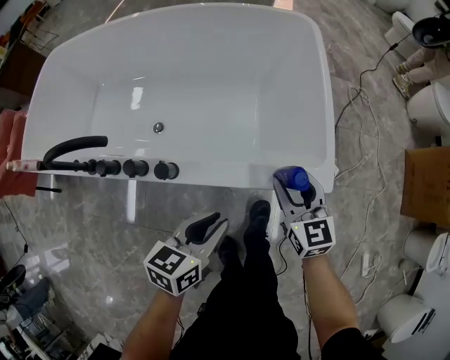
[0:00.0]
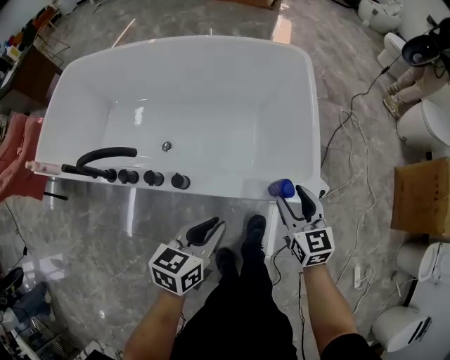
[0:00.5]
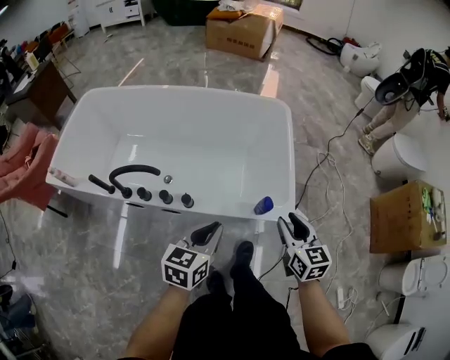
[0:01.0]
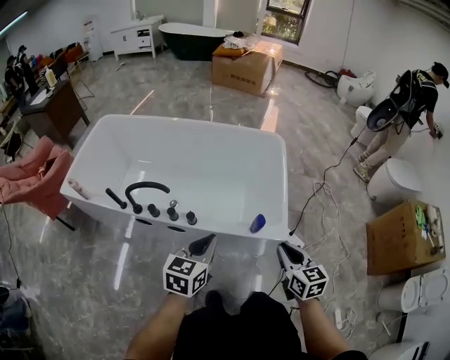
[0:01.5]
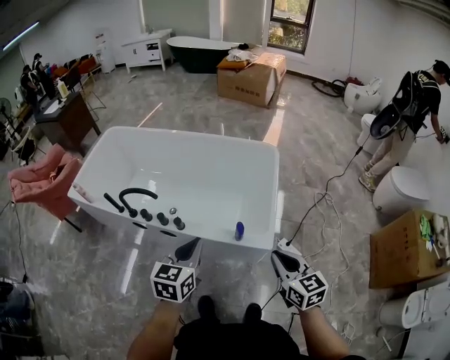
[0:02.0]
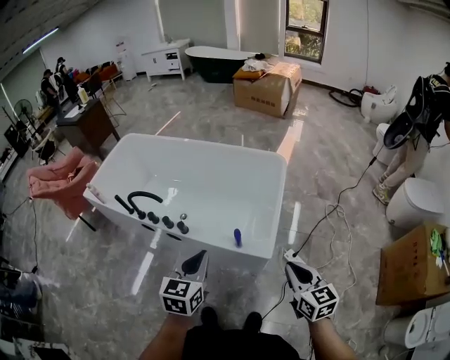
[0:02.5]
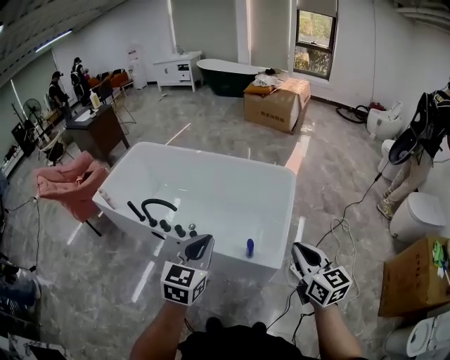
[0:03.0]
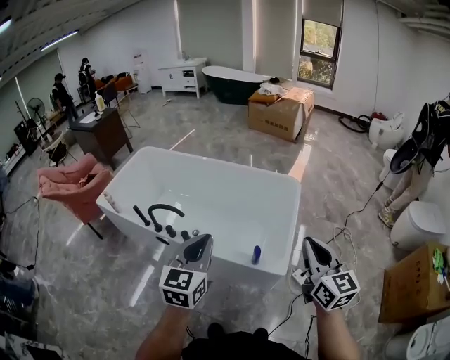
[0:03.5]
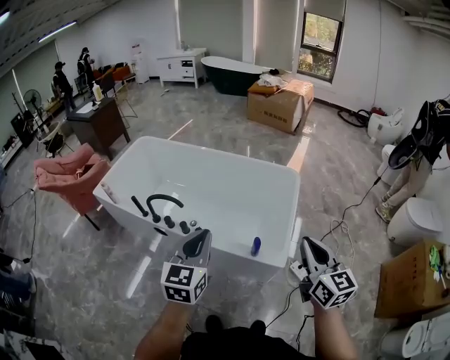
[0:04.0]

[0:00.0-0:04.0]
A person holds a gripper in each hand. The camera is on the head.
0:00.0 to 0:02.0: The left gripper is displaced upward by approximately 30 cm, and changes its angle by about 30 degrees; the right gripper travels upward and backward by approximately 35 cm, and closes its fingers.
0:02.0 to 0:04.0: The grippers both shift upward by roughly 15 cm.

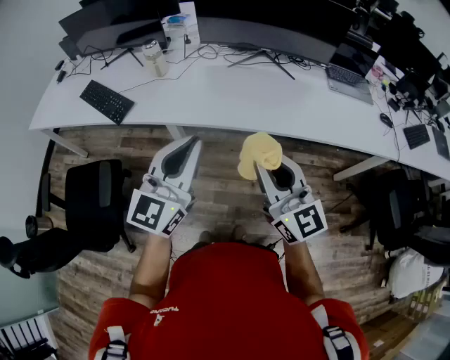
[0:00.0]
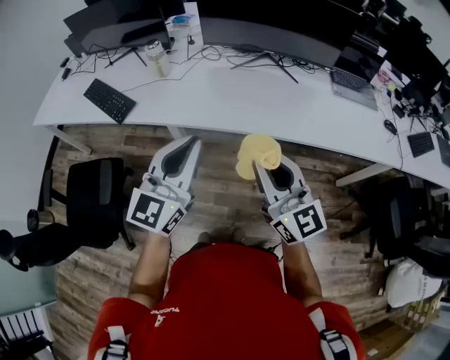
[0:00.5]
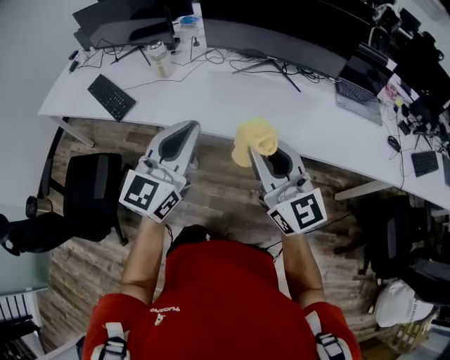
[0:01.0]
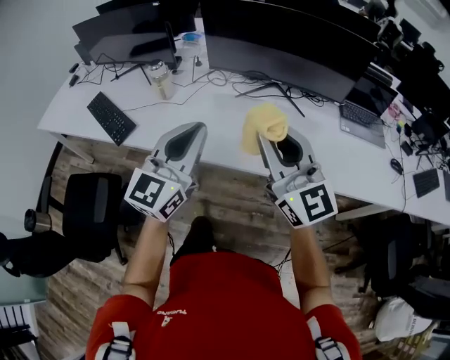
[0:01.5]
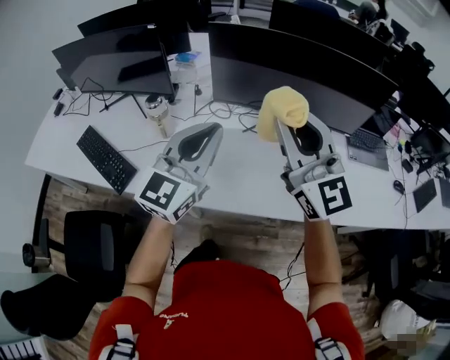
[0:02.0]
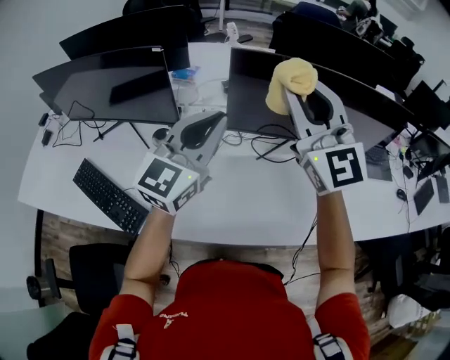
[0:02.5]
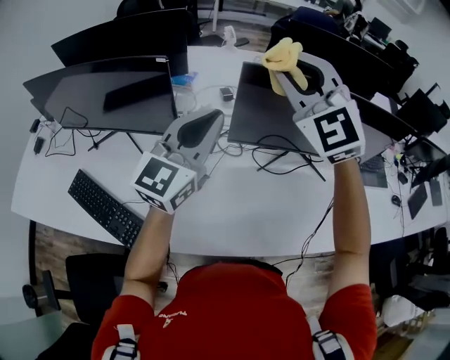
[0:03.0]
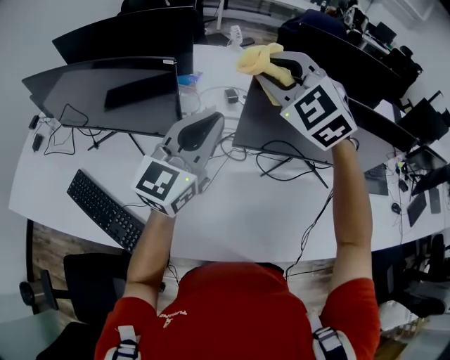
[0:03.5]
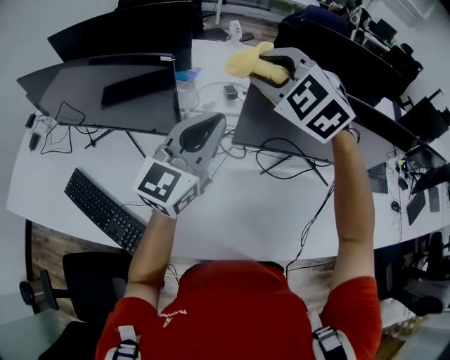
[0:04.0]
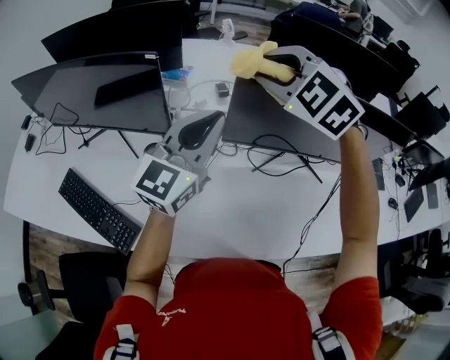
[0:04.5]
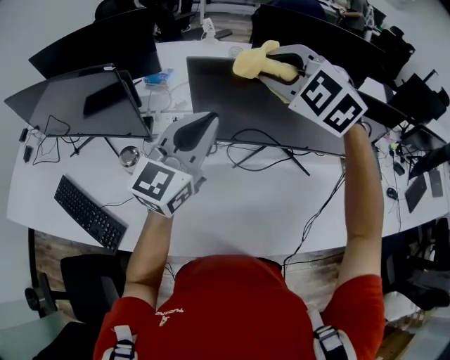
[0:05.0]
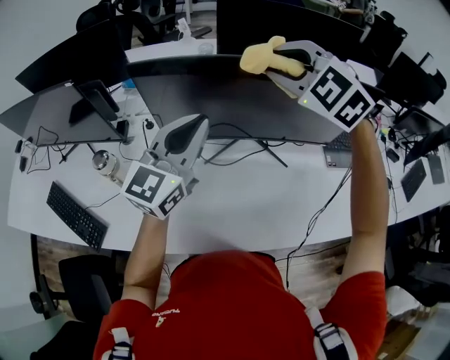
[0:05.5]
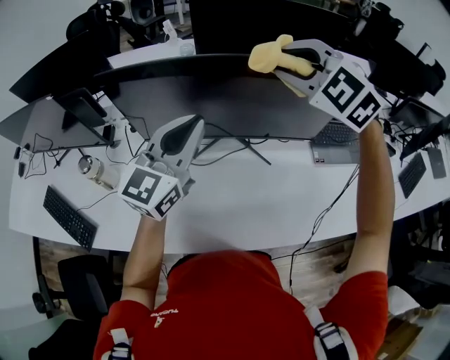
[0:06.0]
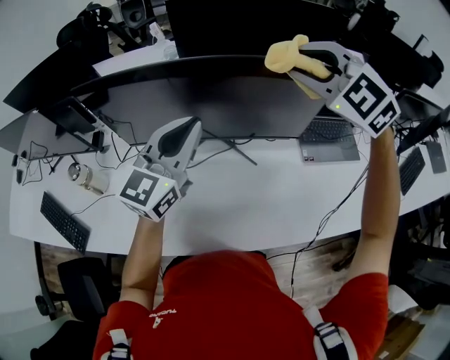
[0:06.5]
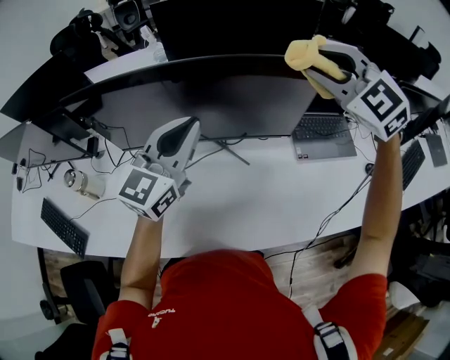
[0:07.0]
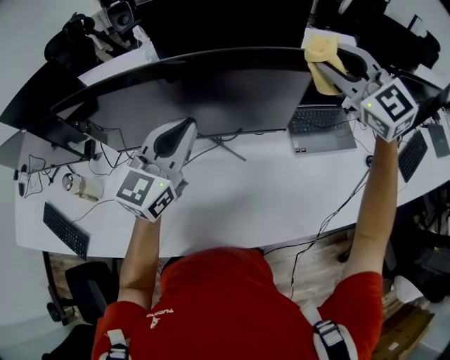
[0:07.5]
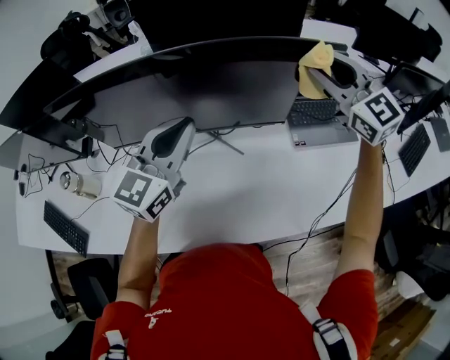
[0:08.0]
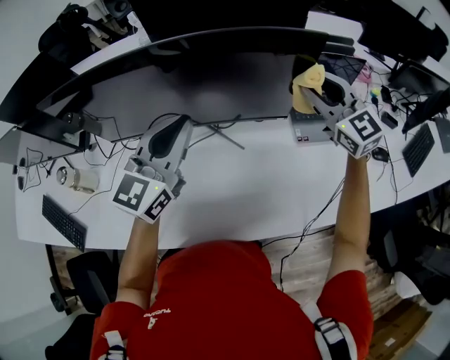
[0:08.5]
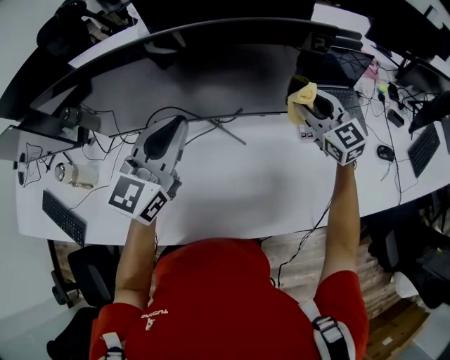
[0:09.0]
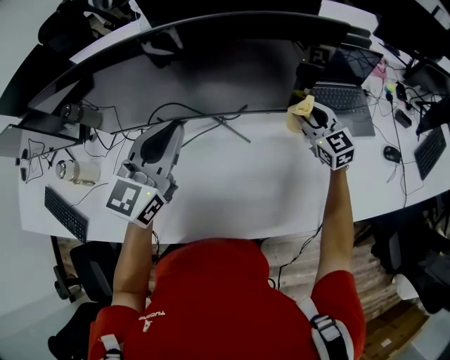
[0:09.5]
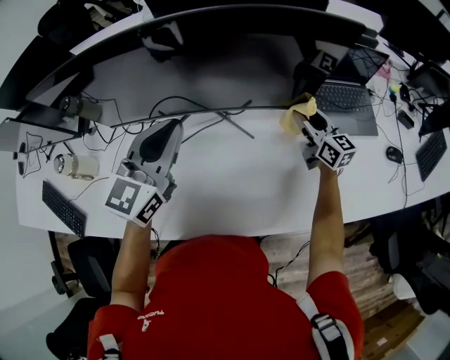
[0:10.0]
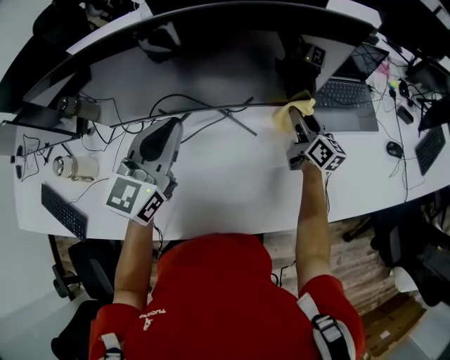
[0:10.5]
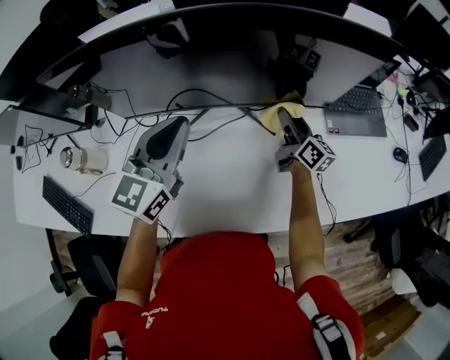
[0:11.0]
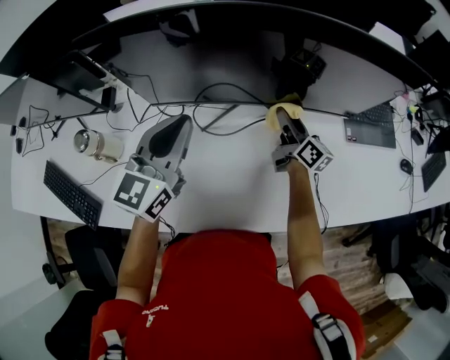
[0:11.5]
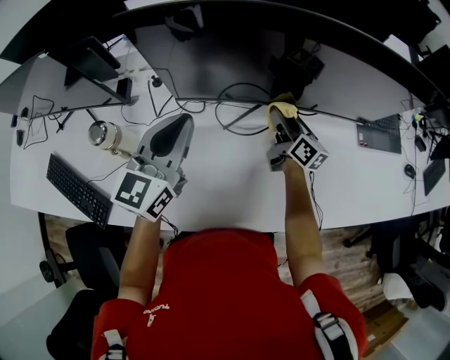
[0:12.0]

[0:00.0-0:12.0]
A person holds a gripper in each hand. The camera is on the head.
0:00.0 to 0:02.0: The left gripper shifts some 30 cm forward; the right gripper shifts approximately 35 cm forward and upward.
0:02.0 to 0:04.0: Both grippers move forward and to the left, roughly 30 cm. The right gripper tips its fingers downward by roughly 50 degrees, and opens.
0:04.0 to 0:06.0: Both grippers move to the right, about 35 cm.
0:06.0 to 0:08.0: The left gripper heads to the right, covering about 10 cm. The right gripper heads to the right, covering approximately 25 cm, and changes its angle by roughly 40 degrees.
0:08.0 to 0:10.0: The left gripper goes roughly 5 cm downward. The right gripper travels downward by approximately 30 cm, and twists approximately 40 degrees clockwise, seen from behind.
0:10.0 to 0:12.0: The grippers both shift to the left by about 30 cm. The right gripper swivels about 20 degrees.

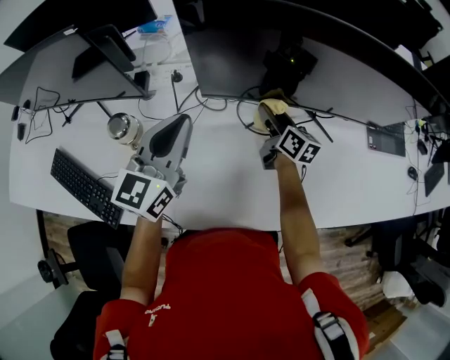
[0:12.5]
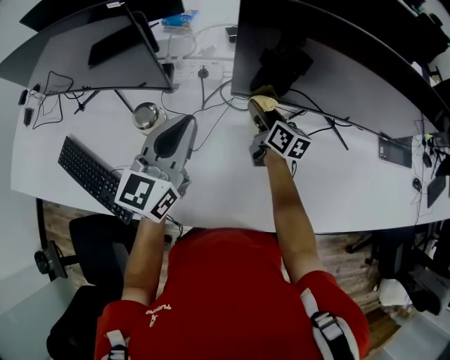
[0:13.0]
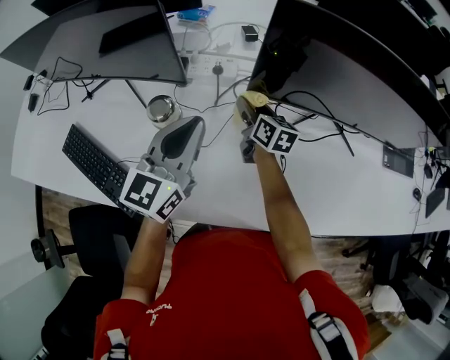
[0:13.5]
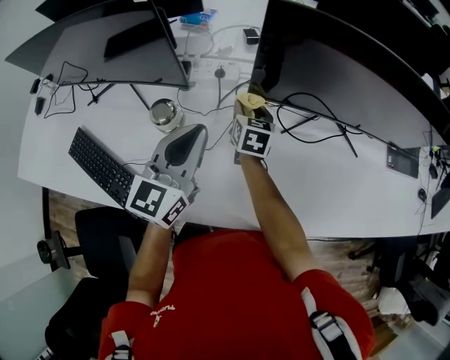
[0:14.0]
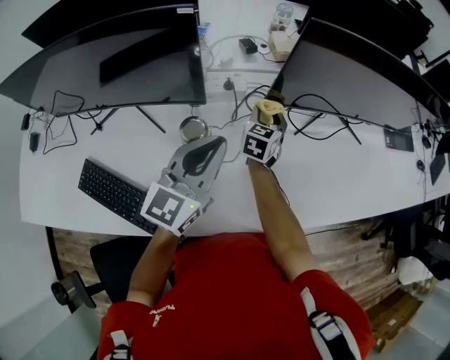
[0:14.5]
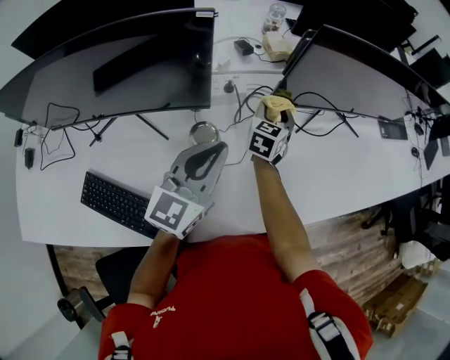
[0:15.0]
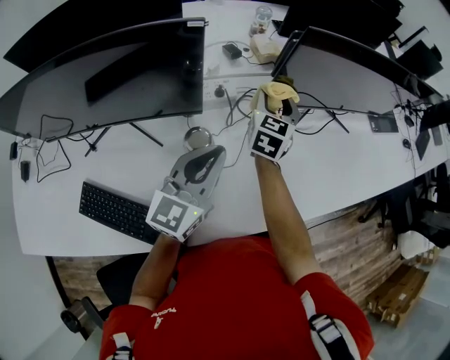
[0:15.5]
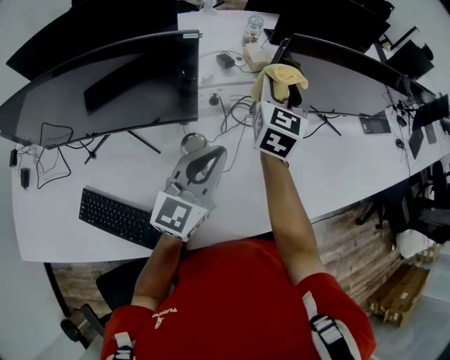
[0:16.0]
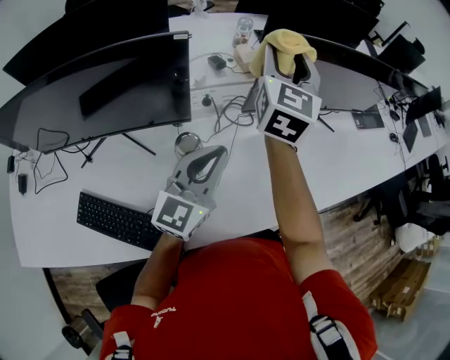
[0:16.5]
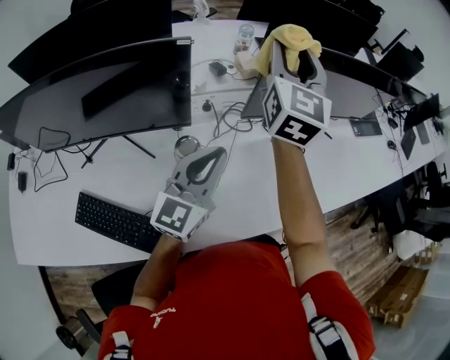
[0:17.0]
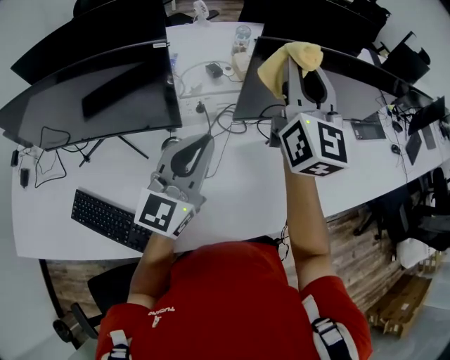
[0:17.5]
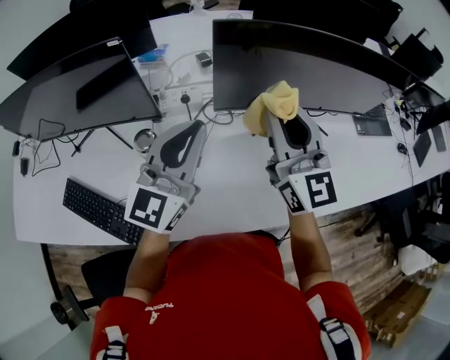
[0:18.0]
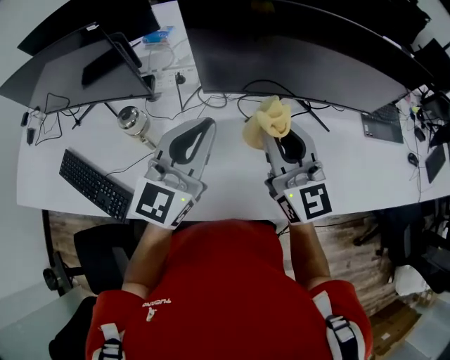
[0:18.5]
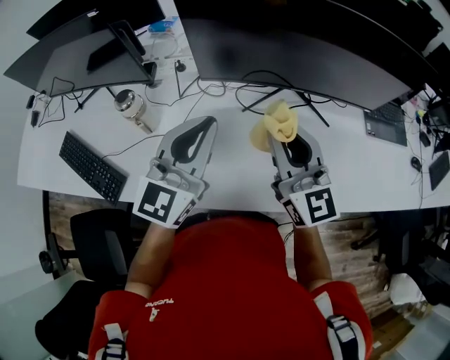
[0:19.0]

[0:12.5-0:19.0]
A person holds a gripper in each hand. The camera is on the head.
0:12.5 to 0:14.5: The right gripper changes place by some 20 cm, and rotates some 50 degrees; the left gripper ends up some 15 cm from where it was.
0:14.5 to 0:17.0: The right gripper moves upward, some 40 cm, and tilts its fingers approximately 40 degrees upward.
0:17.0 to 0:19.0: The right gripper shifts by approximately 30 cm, swivels roughly 40 degrees, and closes its fingers, while the left gripper changes place by roughly 20 cm, and rotates about 20 degrees.

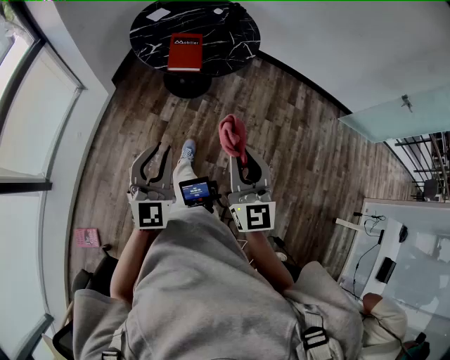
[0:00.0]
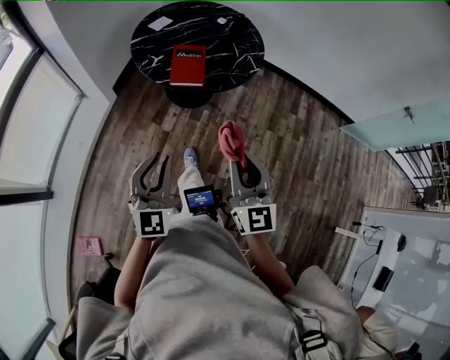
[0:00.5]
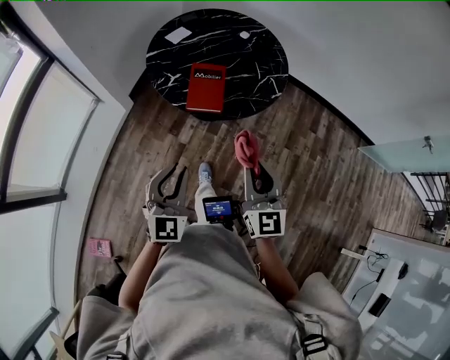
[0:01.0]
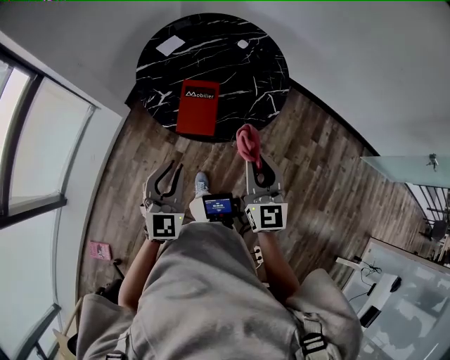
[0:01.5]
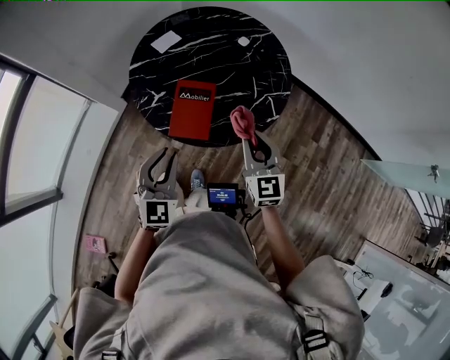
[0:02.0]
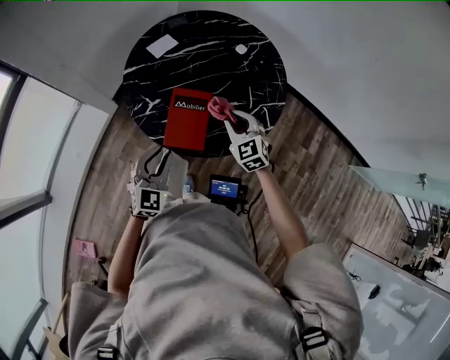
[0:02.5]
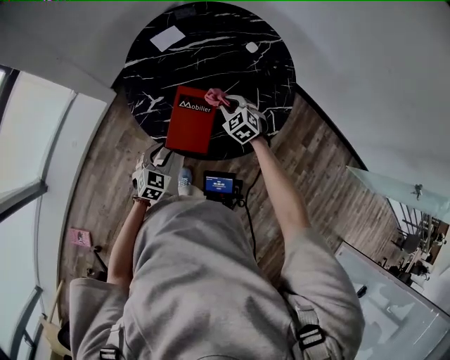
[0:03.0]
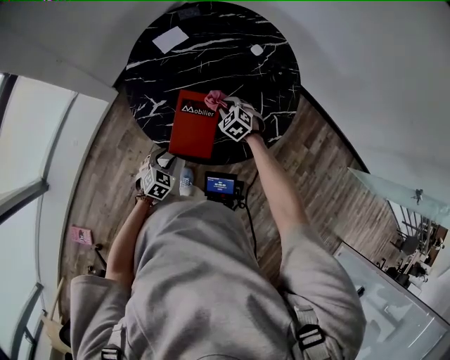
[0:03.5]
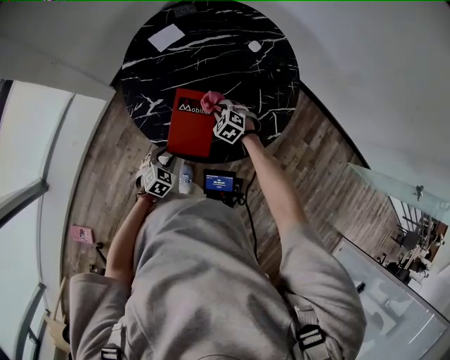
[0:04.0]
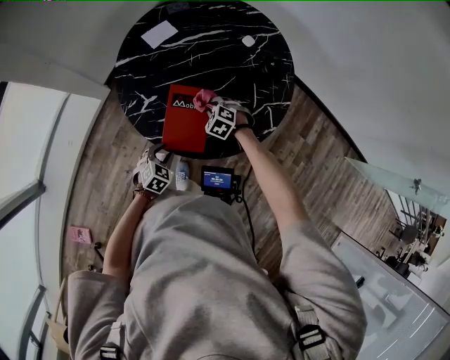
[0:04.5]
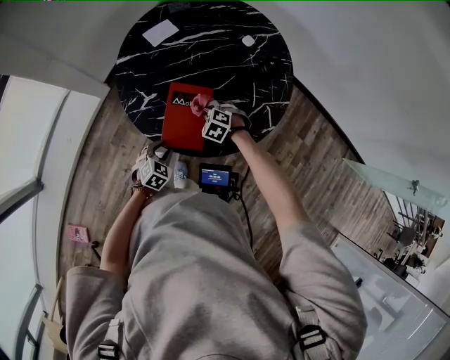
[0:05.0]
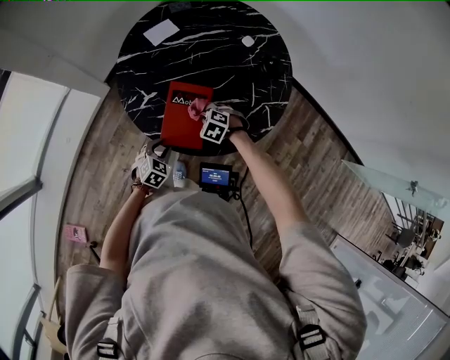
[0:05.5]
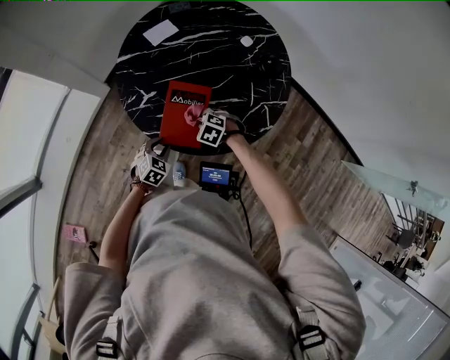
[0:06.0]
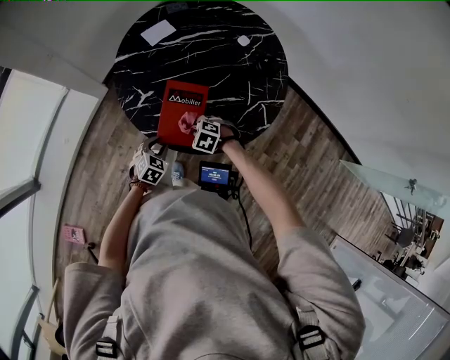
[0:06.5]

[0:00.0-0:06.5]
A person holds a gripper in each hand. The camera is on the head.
0:00.0 to 0:02.0: The two grippers go some 40 cm forward.
0:02.0 to 0:04.5: The right gripper shifts roughly 35 cm downward and forward, and tips its fingers downward by approximately 50 degrees. The left gripper goes about 30 cm downward, and angles its fingers downward, by some 40 degrees.
0:04.5 to 0:06.5: The right gripper ends up approximately 10 cm from where it was.
